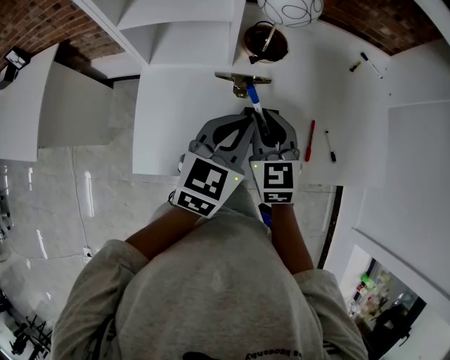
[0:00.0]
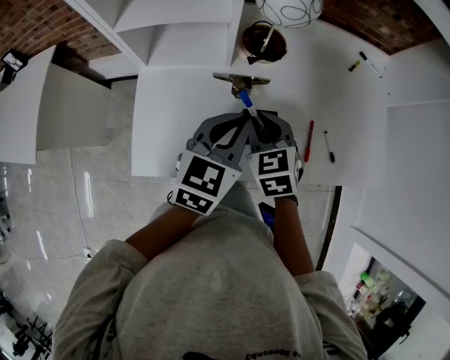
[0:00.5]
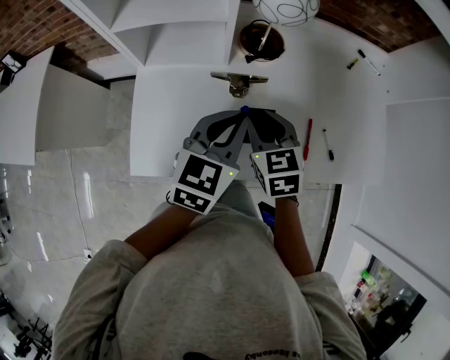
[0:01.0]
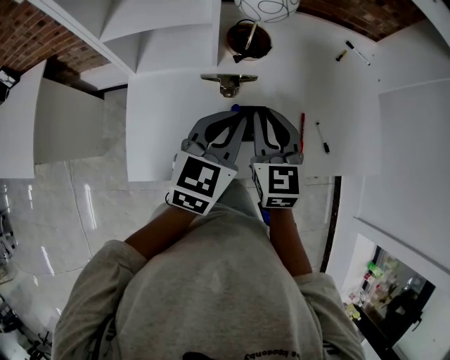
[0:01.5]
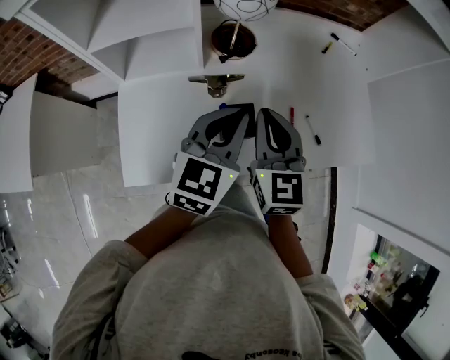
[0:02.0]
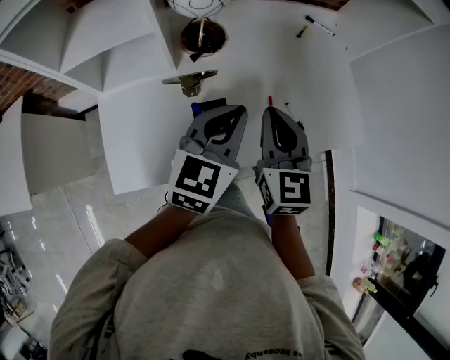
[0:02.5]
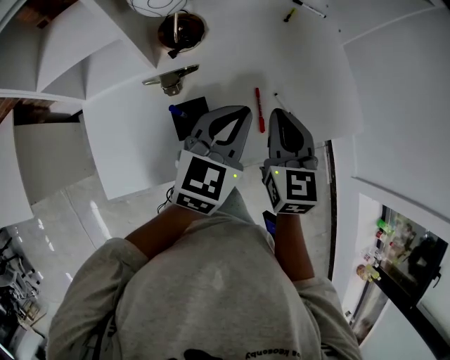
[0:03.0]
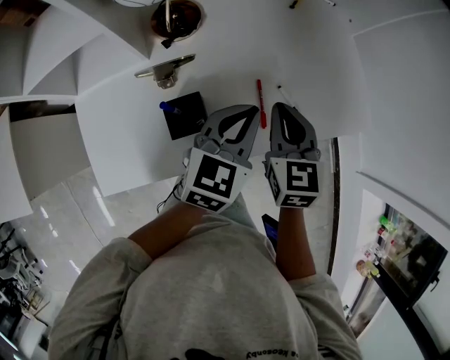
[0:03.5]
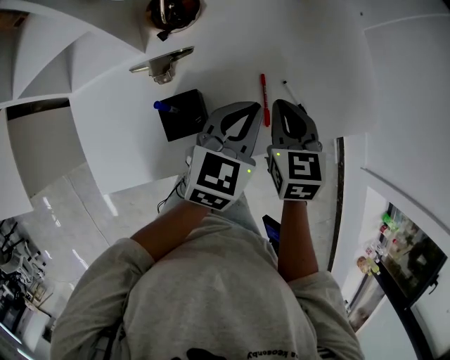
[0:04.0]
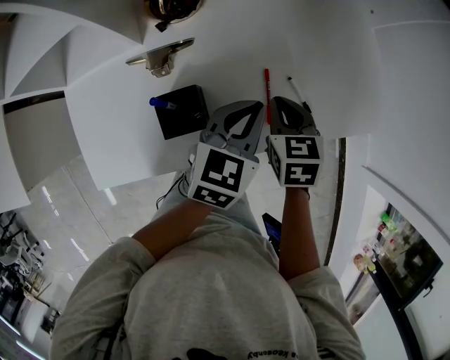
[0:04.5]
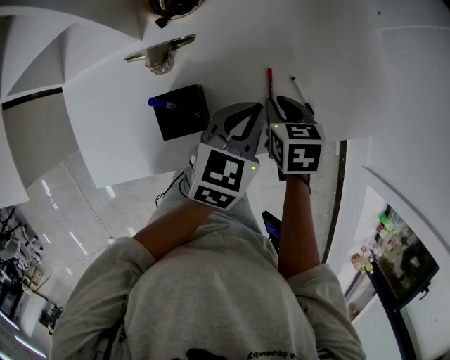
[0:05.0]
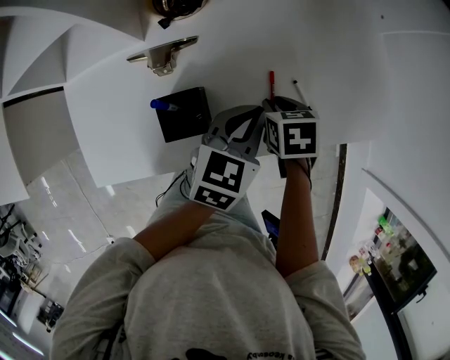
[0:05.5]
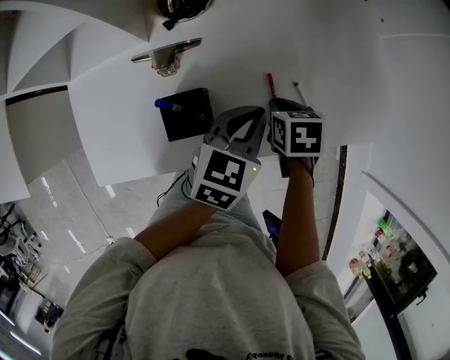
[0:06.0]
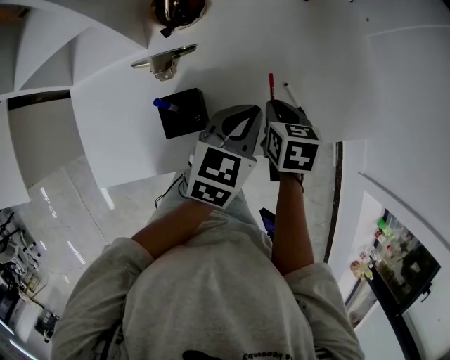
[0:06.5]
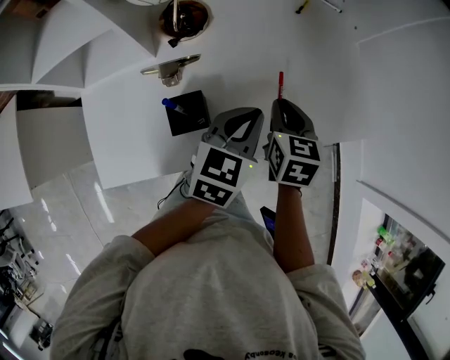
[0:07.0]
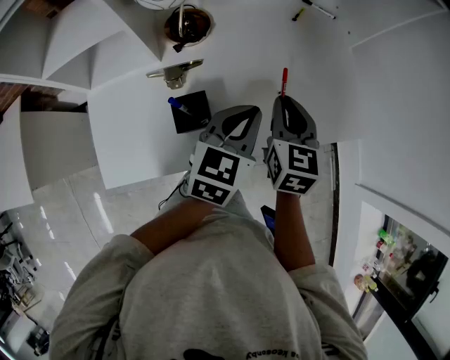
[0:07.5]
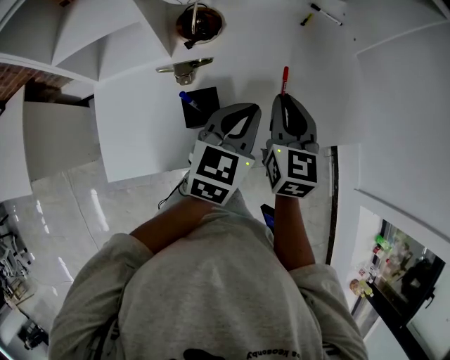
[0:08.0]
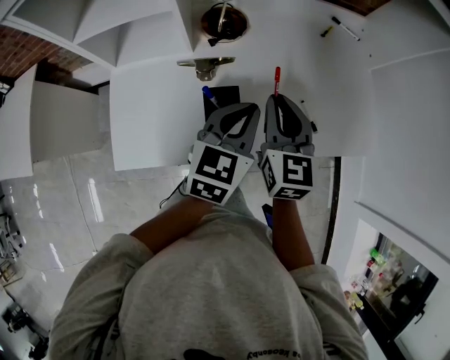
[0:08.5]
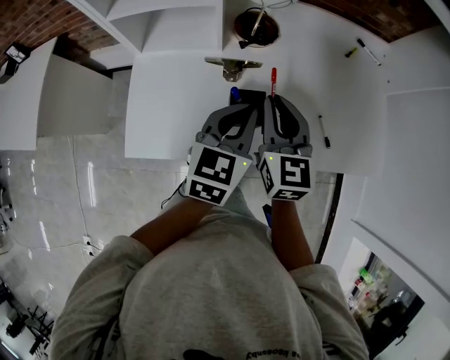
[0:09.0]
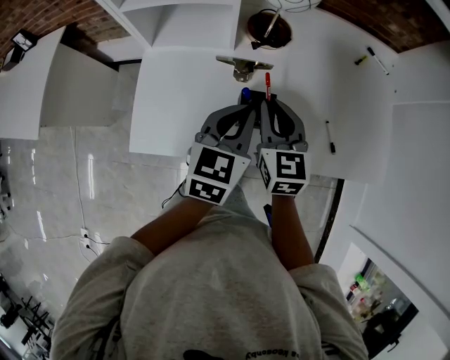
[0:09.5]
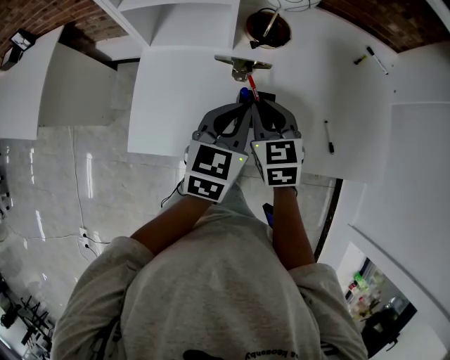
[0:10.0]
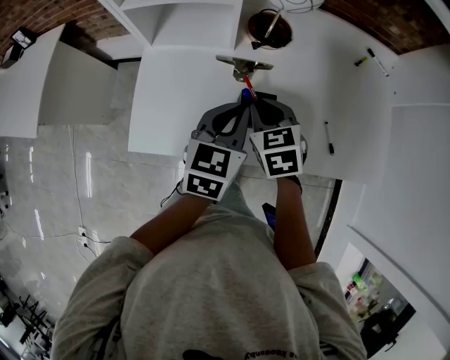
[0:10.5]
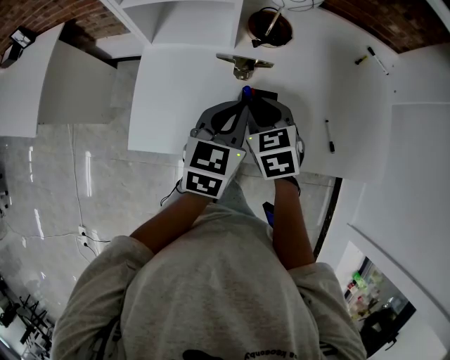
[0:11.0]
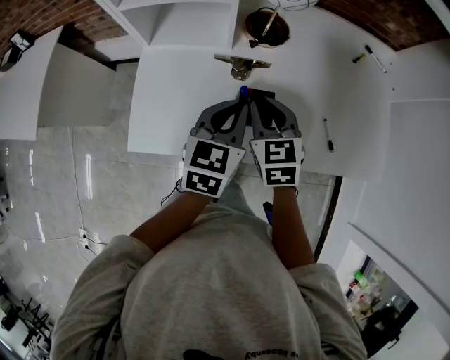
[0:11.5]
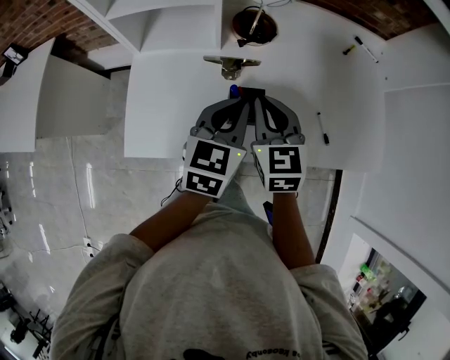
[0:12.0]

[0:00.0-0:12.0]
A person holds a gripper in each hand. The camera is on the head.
0:00.0 to 0:02.0: The right gripper is displaced upward and to the right by about 10 cm.
0:02.0 to 0:04.0: Both grippers travel together to the right and downward, some 20 cm. The right gripper turns by approximately 30 degrees.
0:04.0 to 0:06.0: The right gripper is displaced downward by about 10 cm, and turns by about 30 degrees.
0:06.0 to 0:08.0: The right gripper moves upward, roughly 20 cm, and tips its fingers upward by approximately 40 degrees; the left gripper shifts approximately 10 cm upward.
0:08.0 to 0:10.0: The grippers both shift to the left by approximately 15 cm. The right gripper swivels about 30 degrees.
0:10.0 to 0:12.0: The right gripper shifts by approximately 5 cm.

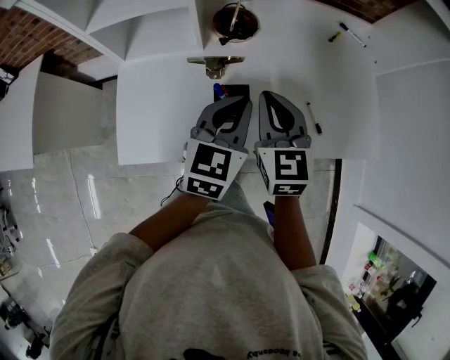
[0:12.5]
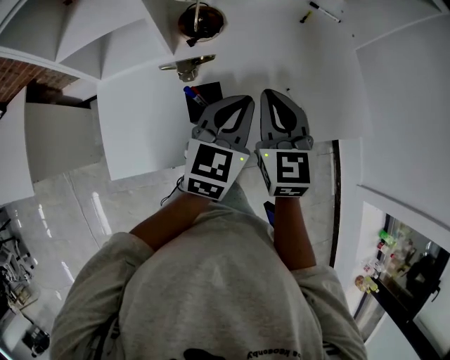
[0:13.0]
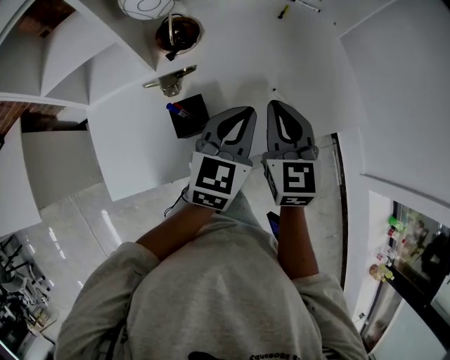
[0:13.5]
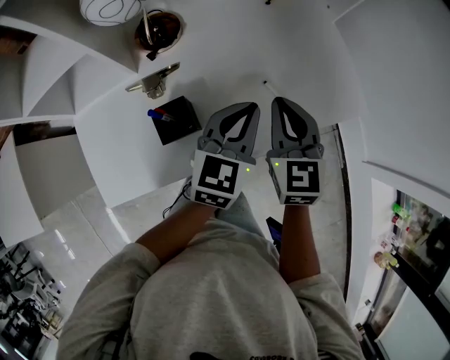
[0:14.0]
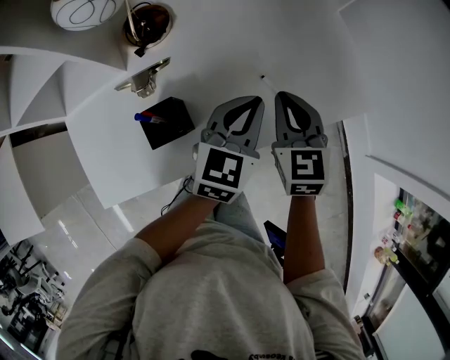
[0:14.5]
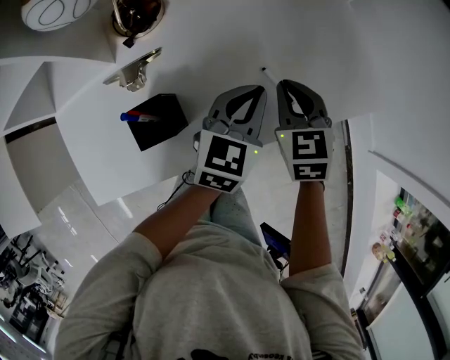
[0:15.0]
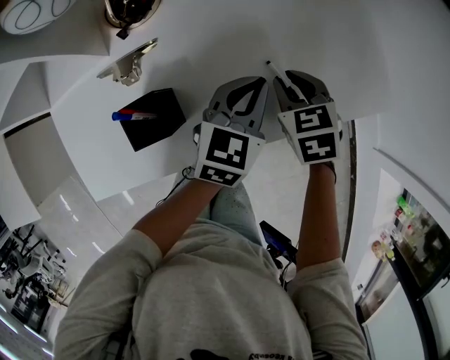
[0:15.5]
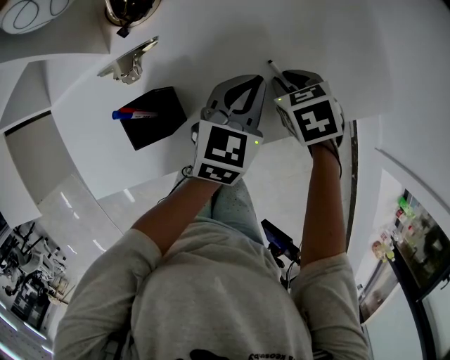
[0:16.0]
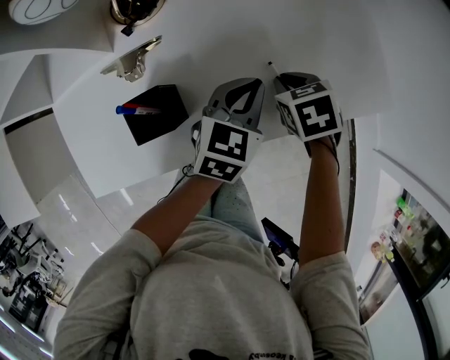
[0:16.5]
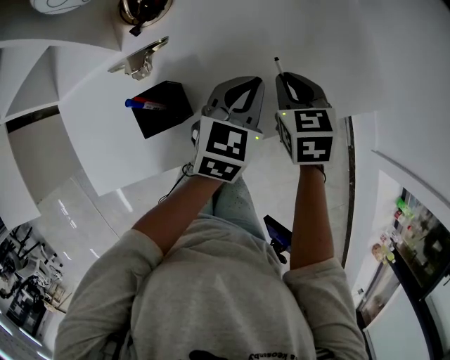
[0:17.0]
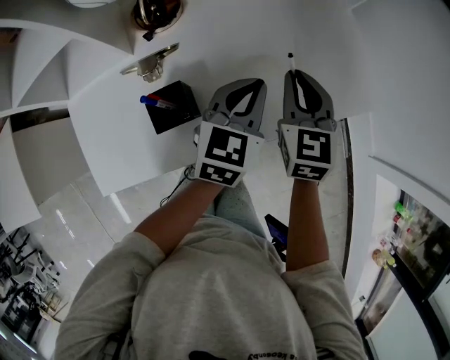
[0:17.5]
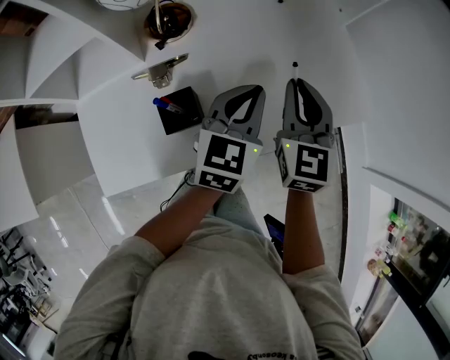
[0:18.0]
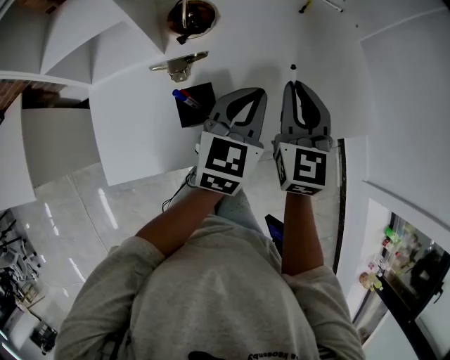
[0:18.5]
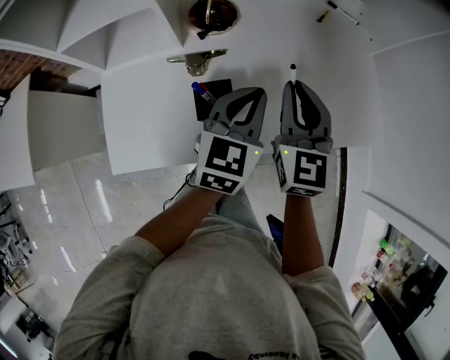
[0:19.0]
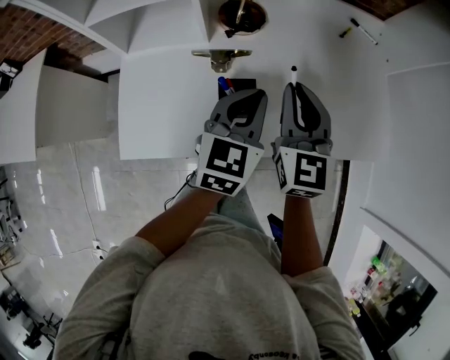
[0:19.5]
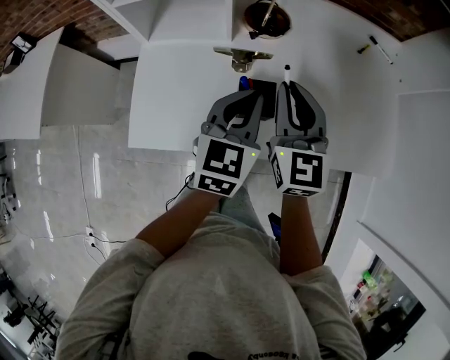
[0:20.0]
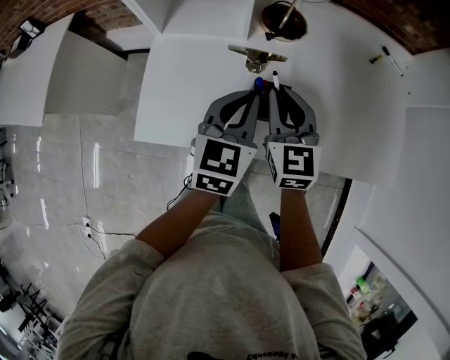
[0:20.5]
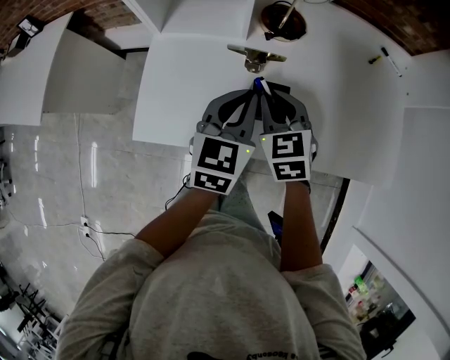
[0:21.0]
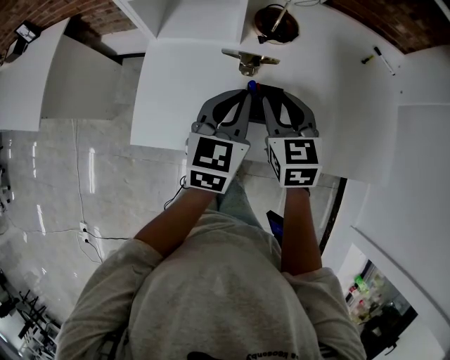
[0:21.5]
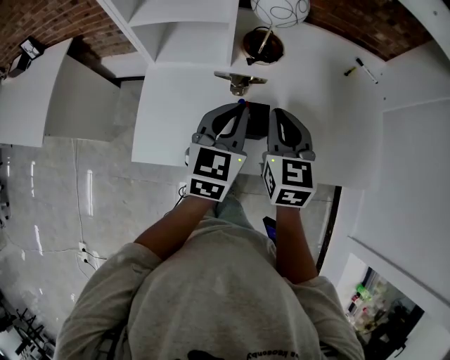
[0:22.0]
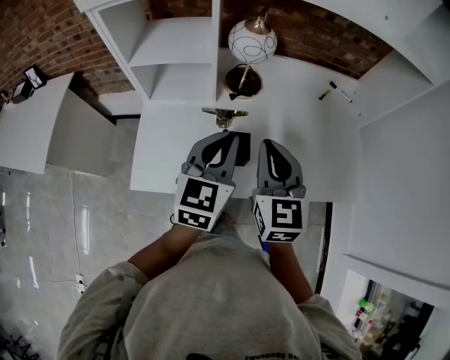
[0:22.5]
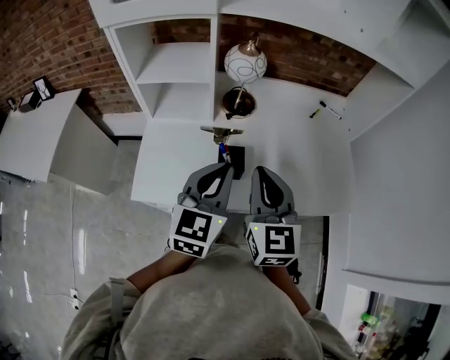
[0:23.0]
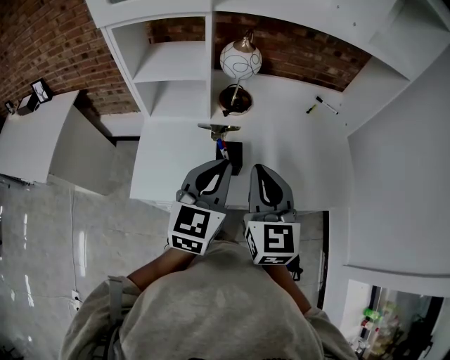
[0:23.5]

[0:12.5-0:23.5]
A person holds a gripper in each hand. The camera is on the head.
0:12.5 to 0:14.5: The two grippers go some 20 cm to the right and downward. The right gripper turns by roughly 20 degrees; the left gripper turns by about 20 degrees.
0:14.5 to 0:16.0: The left gripper moves downward, approximately 10 cm. The right gripper is displaced downward by some 15 cm, and angles its fingers downward, by about 40 degrees.
0:16.0 to 0:18.0: The left gripper moves upward, approximately 10 cm. Meanwhile the right gripper heads upward, covering roughly 20 cm, and tilts its fingers some 50 degrees upward.
0:18.0 to 0:20.0: Both grippers move to the left, approximately 20 cm. The left gripper swivels roughly 20 degrees. Meanwhile the right gripper changes its angle by roughly 30 degrees.
0:20.0 to 0:21.5: The right gripper travels downward by approximately 5 cm, and swivels approximately 20 degrees.
0:21.5 to 0:23.5: Both grippers move upward and backward, about 20 cm. The right gripper rotates roughly 30 degrees, and closes its fingers.

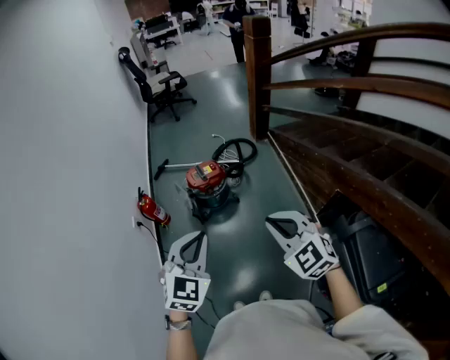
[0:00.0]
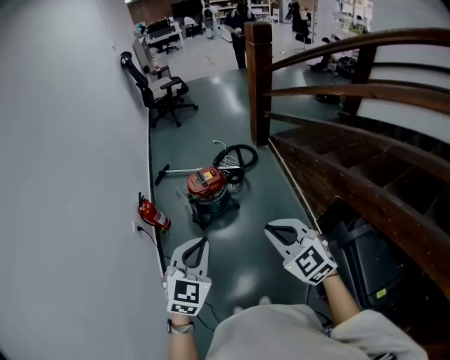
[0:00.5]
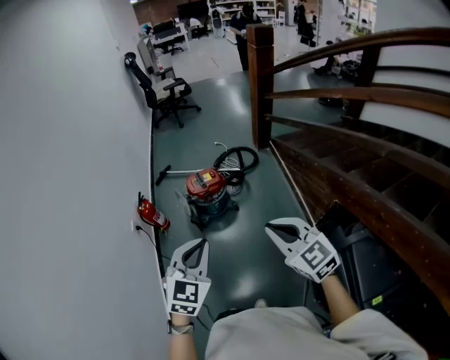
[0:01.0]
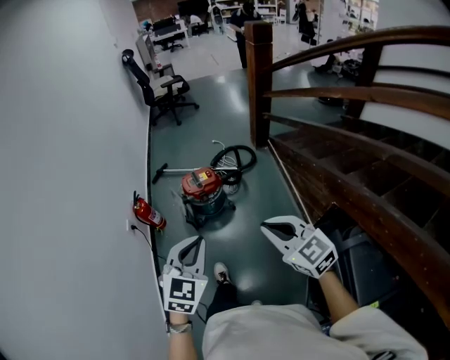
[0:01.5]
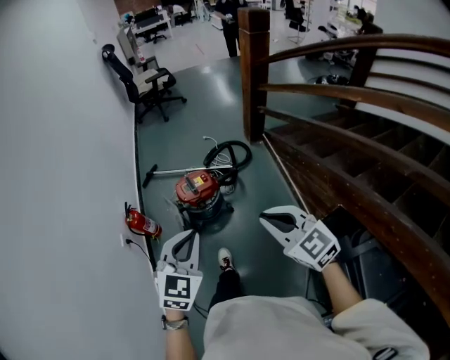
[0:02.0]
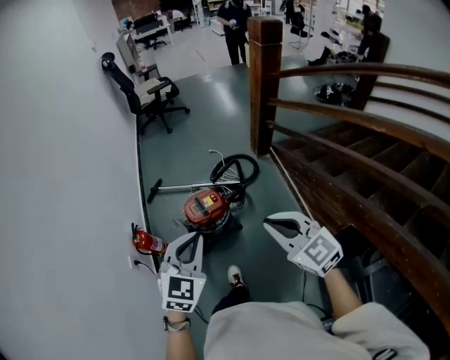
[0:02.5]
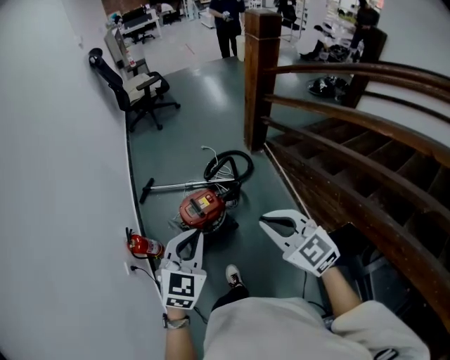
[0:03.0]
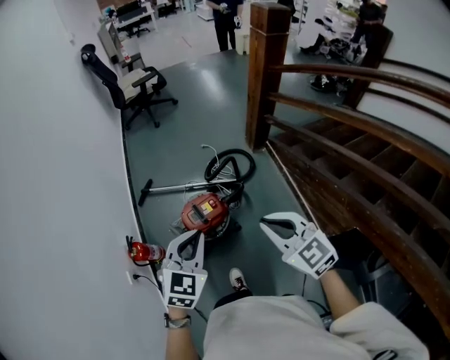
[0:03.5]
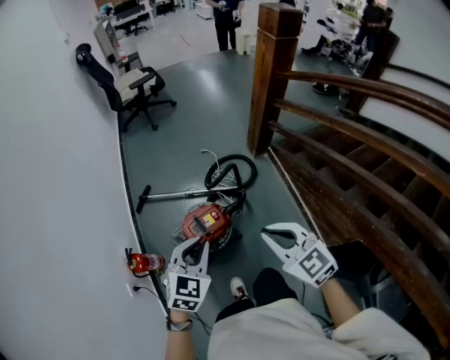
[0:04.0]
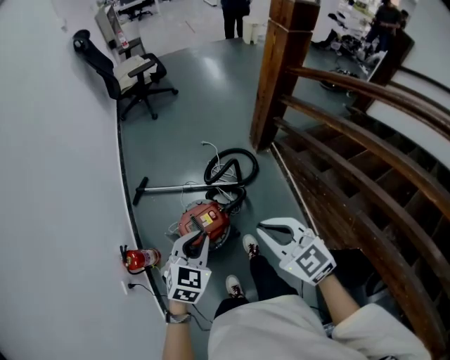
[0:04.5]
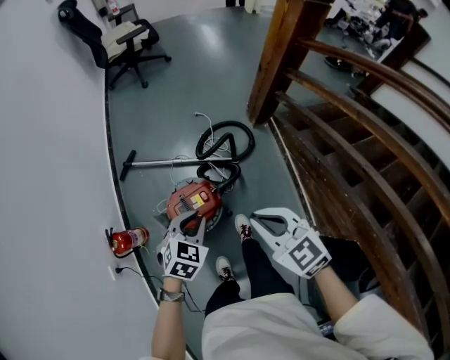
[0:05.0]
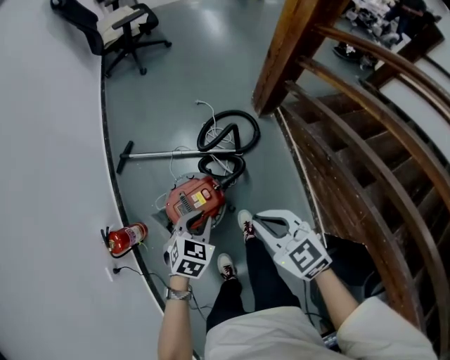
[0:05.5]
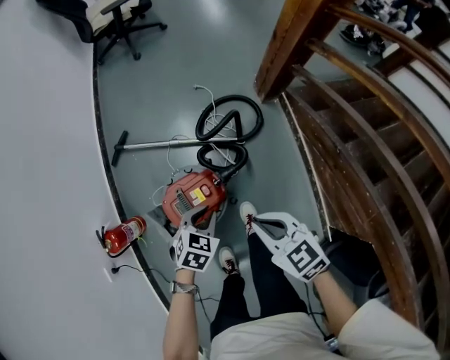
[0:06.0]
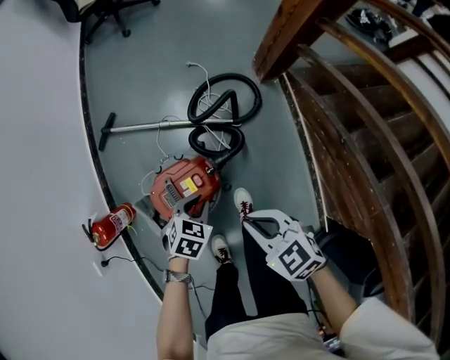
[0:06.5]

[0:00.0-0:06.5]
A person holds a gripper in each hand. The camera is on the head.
0:00.0 to 0:02.0: Both grippers travel together forward, some 15 cm. The right gripper turns by approximately 20 degrees.
0:02.0 to 0:04.5: The grippers both shift forward by about 35 cm.
0:04.5 to 0:06.5: Both grippers move downward, some 30 cm. The left gripper turns by approximately 30 degrees. Meanwhile the right gripper changes its angle by roughly 20 degrees.
